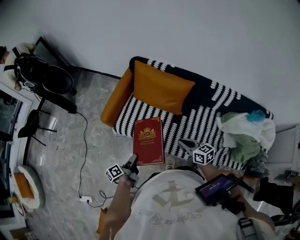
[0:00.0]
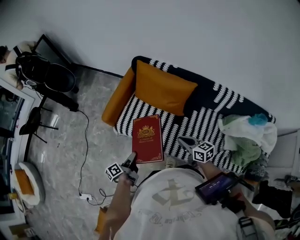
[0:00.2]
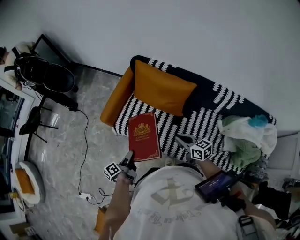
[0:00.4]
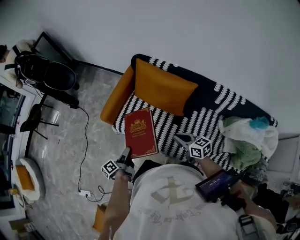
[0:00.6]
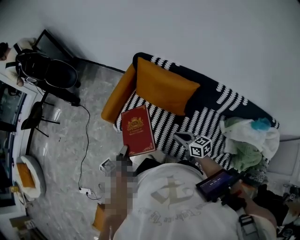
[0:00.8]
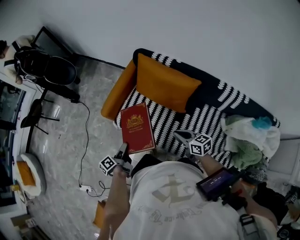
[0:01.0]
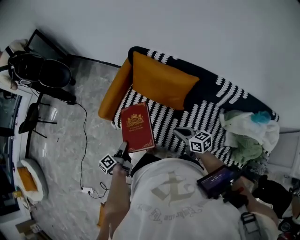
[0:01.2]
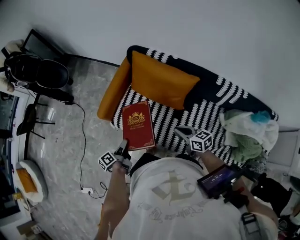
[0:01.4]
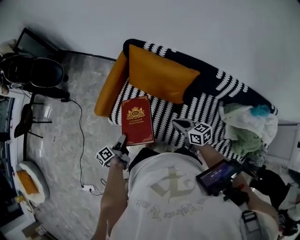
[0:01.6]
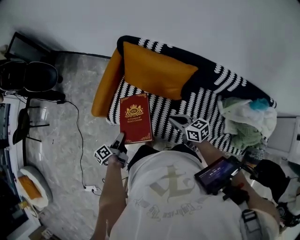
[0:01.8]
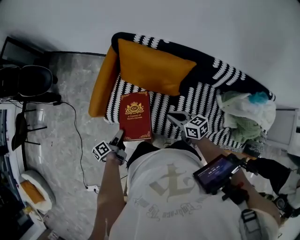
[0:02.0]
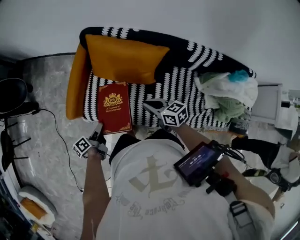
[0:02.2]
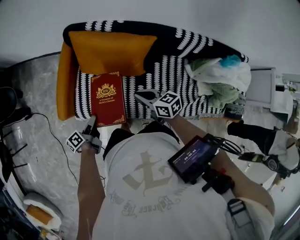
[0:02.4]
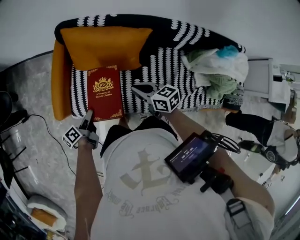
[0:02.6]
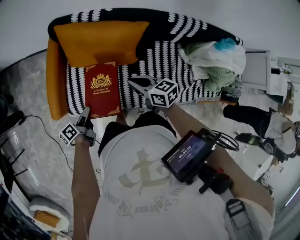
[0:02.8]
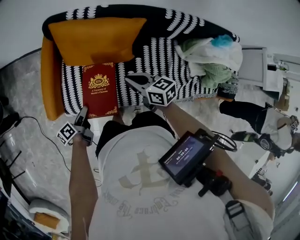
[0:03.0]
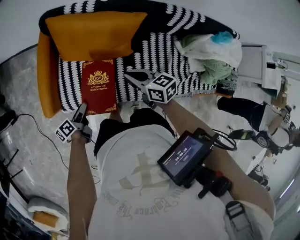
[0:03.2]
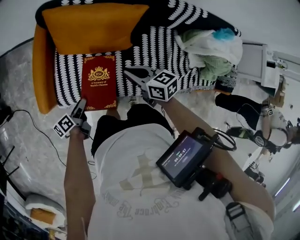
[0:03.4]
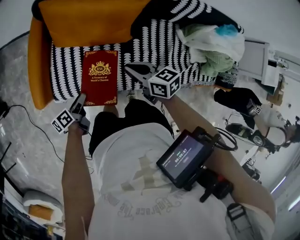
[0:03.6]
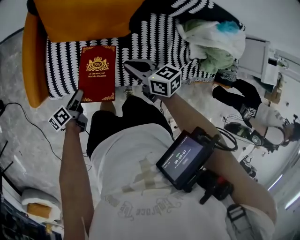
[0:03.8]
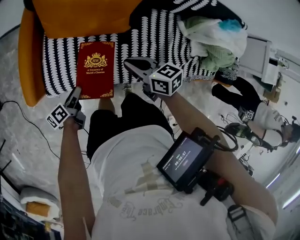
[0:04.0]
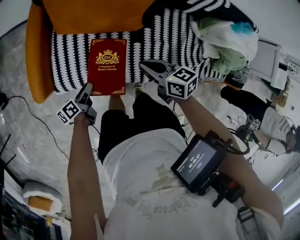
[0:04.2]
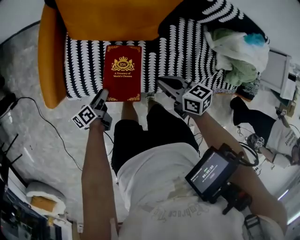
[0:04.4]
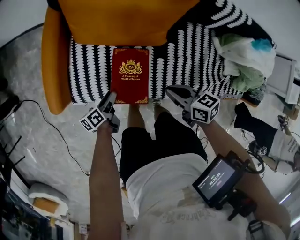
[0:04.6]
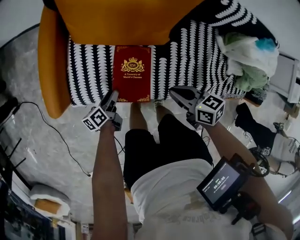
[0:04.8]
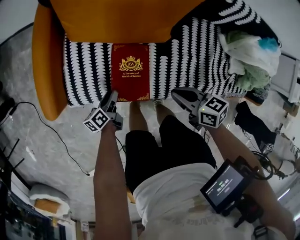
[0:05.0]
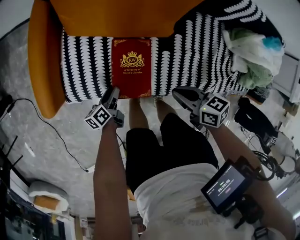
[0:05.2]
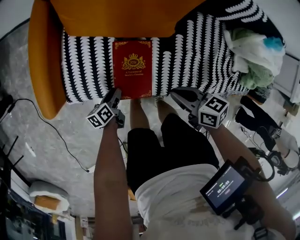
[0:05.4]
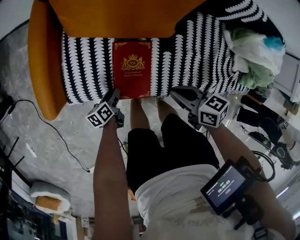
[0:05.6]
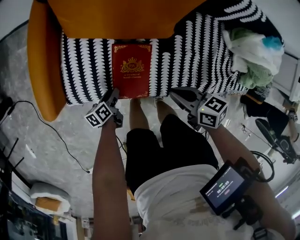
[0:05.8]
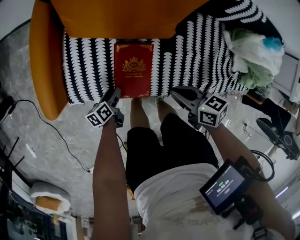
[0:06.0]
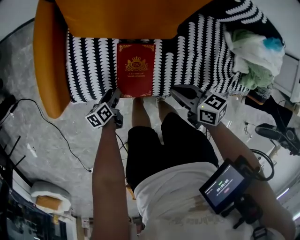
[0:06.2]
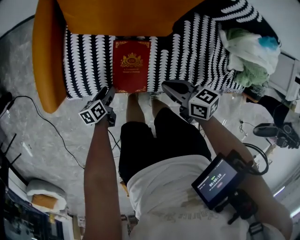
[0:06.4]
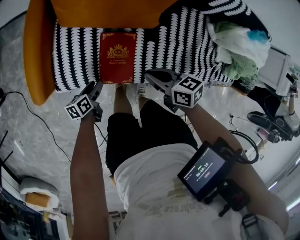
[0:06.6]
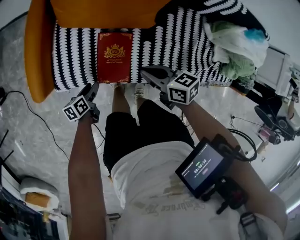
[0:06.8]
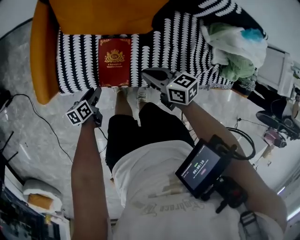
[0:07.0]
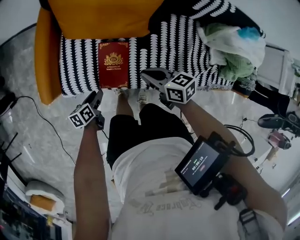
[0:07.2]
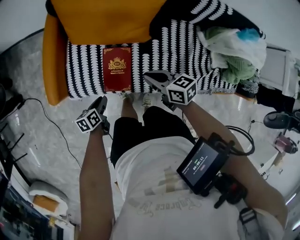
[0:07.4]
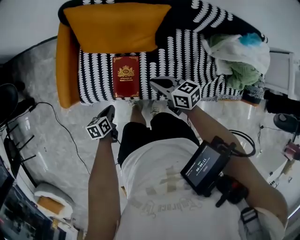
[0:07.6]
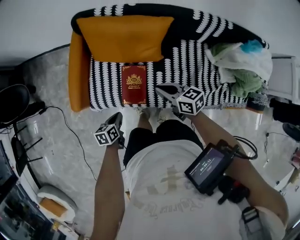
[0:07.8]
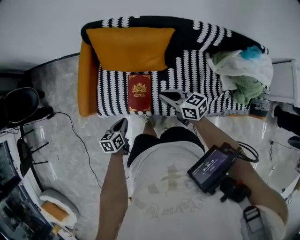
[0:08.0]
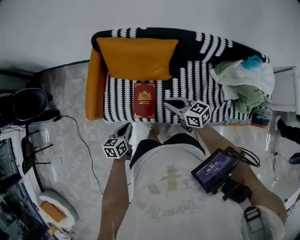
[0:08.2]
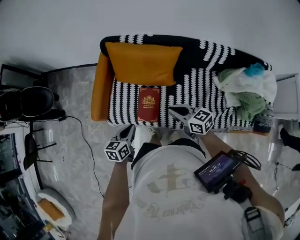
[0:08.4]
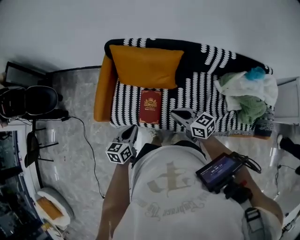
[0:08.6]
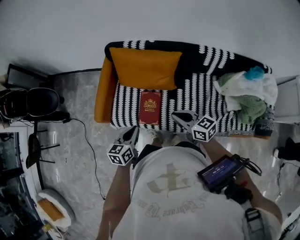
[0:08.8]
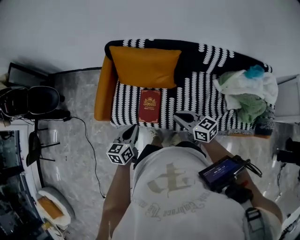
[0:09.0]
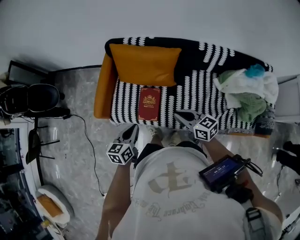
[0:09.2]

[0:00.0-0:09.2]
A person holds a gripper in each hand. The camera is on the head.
0:00.0 to 0:01.6: The right gripper changes place by about 15 cm.
0:01.6 to 0:03.0: The right gripper changes place by approximately 5 cm.
0:03.0 to 0:04.6: The right gripper is displaced downward by roughly 15 cm.
0:06.2 to 0:07.6: The right gripper is displaced upward by some 10 cm.
0:07.6 to 0:09.2: The right gripper heads upward, covering roughly 15 cm.

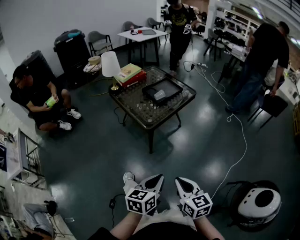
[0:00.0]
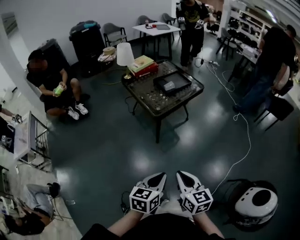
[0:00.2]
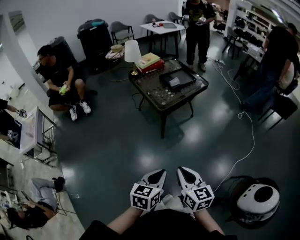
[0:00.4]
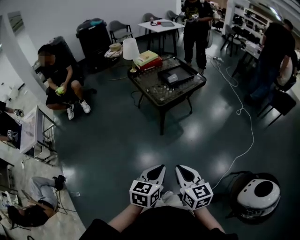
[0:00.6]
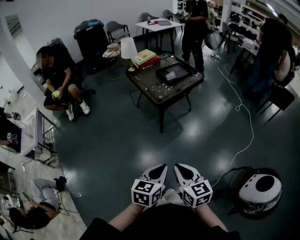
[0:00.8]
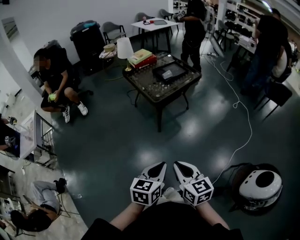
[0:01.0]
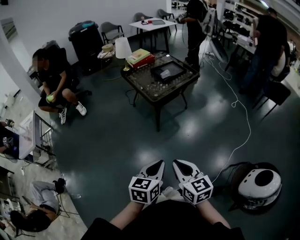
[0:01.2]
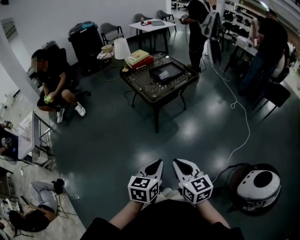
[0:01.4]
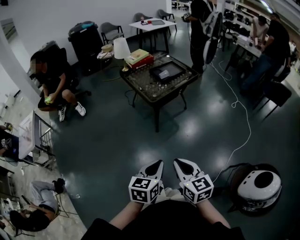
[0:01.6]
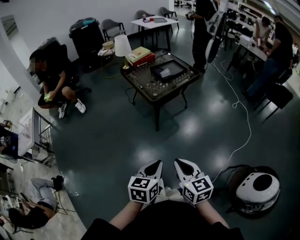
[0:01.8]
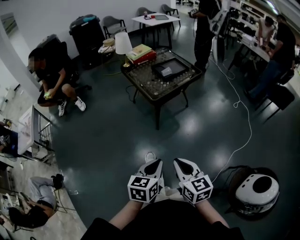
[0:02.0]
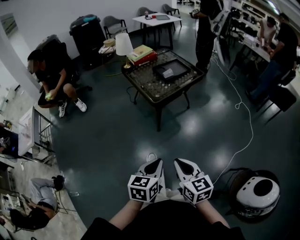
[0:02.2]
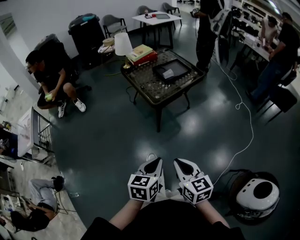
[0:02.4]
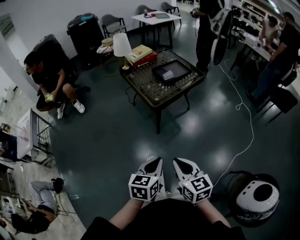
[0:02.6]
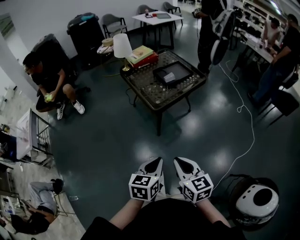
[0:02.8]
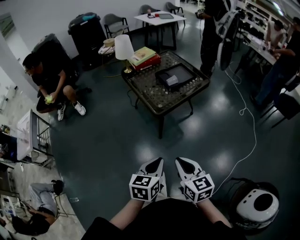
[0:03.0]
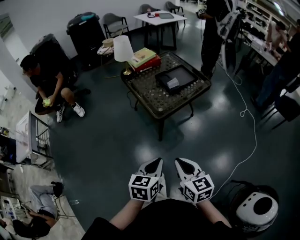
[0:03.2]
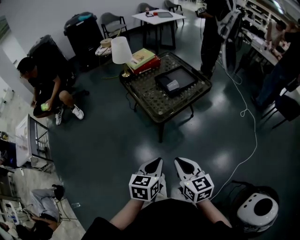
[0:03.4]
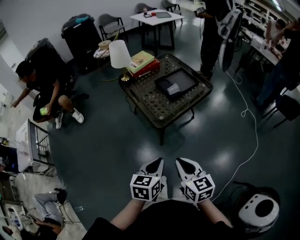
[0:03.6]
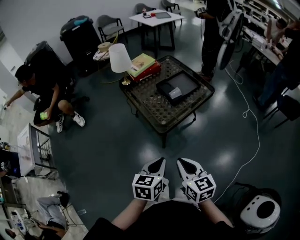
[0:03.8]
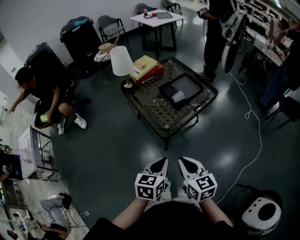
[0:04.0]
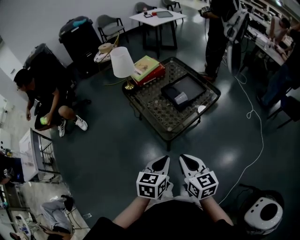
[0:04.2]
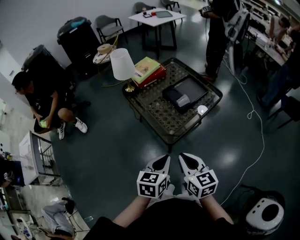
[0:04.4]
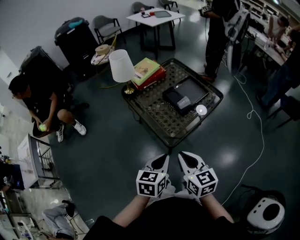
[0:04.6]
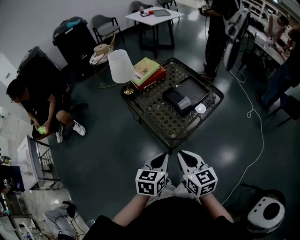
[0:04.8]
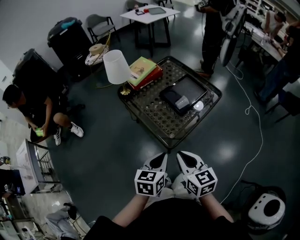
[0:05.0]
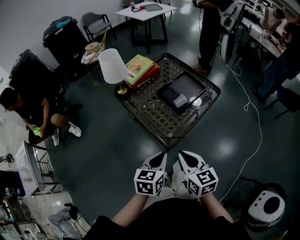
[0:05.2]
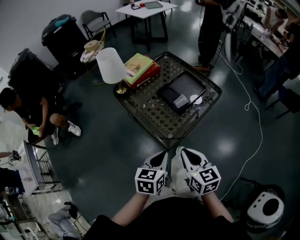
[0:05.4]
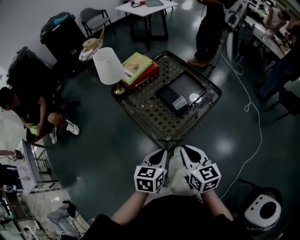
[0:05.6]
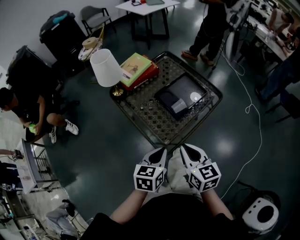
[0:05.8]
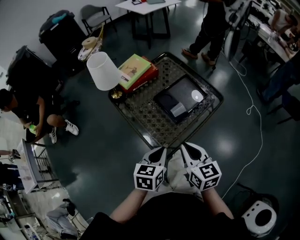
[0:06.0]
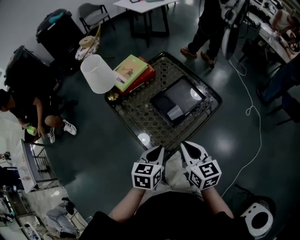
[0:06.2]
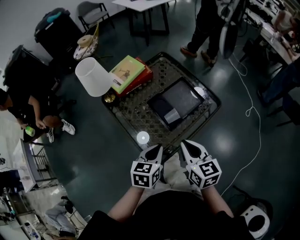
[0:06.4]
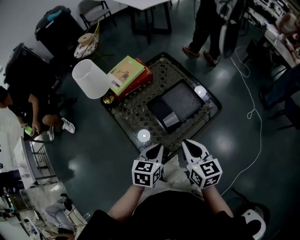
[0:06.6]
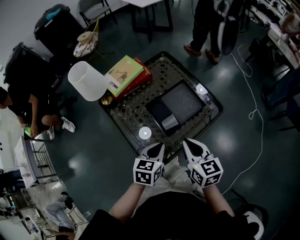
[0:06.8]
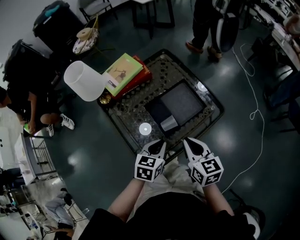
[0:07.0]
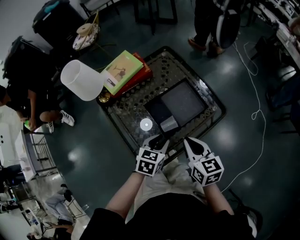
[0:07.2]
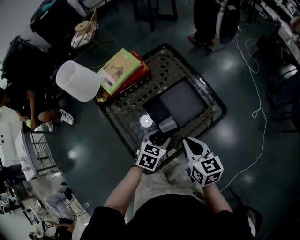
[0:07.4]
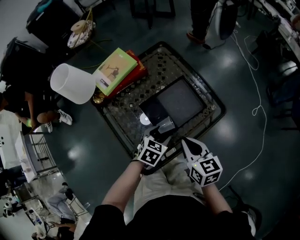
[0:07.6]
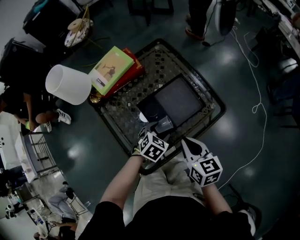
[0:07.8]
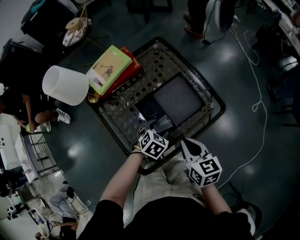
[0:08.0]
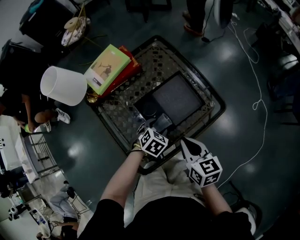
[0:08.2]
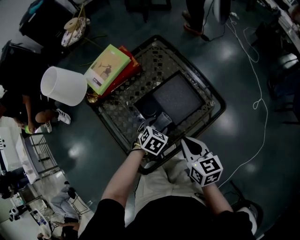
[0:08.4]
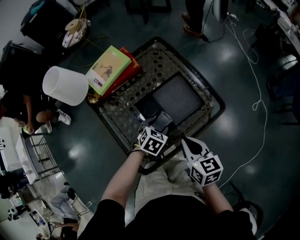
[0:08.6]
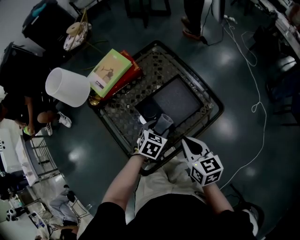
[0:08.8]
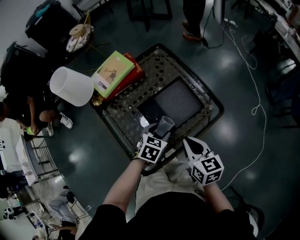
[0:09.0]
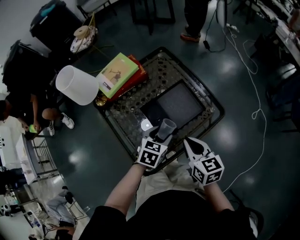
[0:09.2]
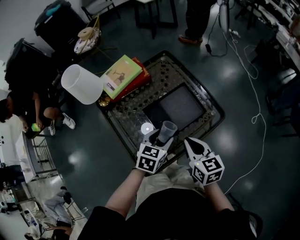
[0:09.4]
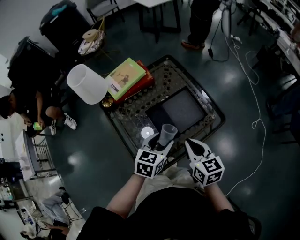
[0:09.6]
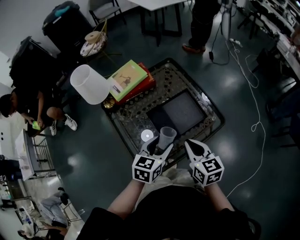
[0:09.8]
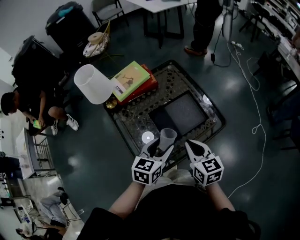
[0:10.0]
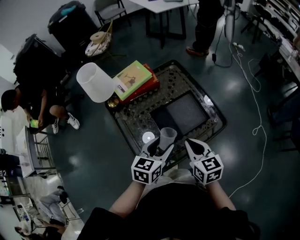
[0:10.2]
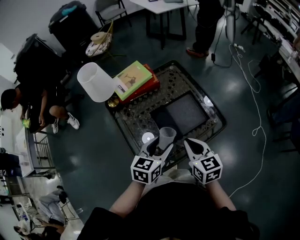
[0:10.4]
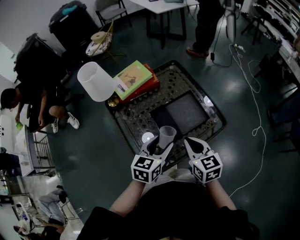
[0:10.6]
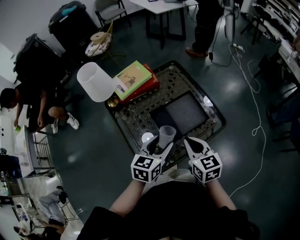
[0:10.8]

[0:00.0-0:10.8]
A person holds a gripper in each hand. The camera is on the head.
0:00.0 to 0:01.6: The two grippers go approximately 15 cm backward.
0:01.6 to 0:03.0: The two grippers go about 20 cm forward.
0:03.0 to 0:04.6: Both grippers travel together forward, approximately 25 cm.
0:04.6 to 0:06.2: The two grippers go some 20 cm forward.
0:06.2 to 0:07.8: The two grippers go approximately 20 cm forward, downward and to the right. The left gripper swivels some 40 degrees, and opens its fingers.
0:07.8 to 0:09.2: The left gripper moves upward, about 5 cm.
0:09.2 to 0:10.8: The left gripper heads upward, covering some 10 cm, and changes its angle by some 20 degrees.

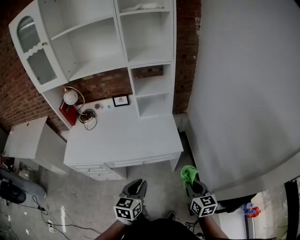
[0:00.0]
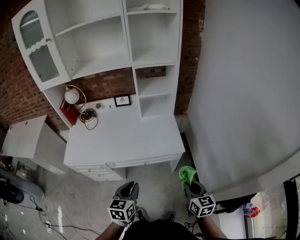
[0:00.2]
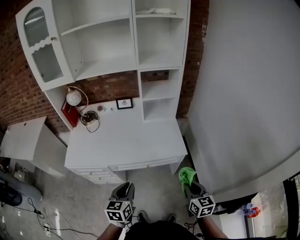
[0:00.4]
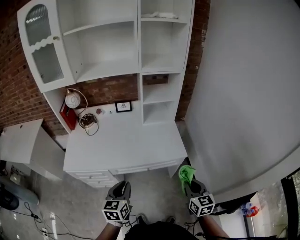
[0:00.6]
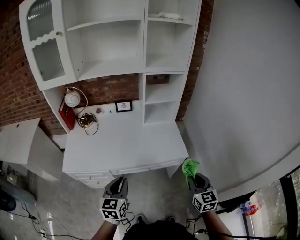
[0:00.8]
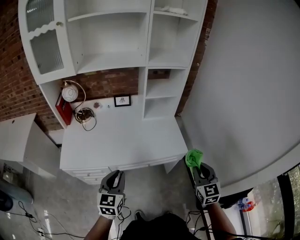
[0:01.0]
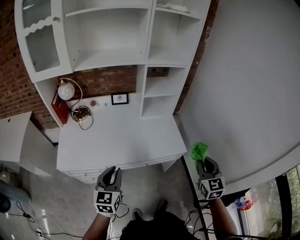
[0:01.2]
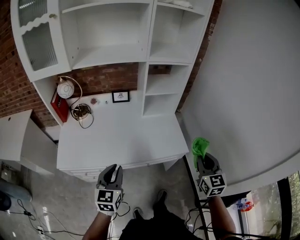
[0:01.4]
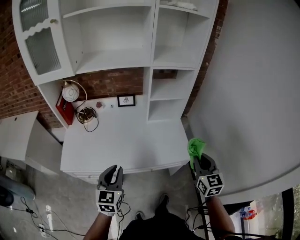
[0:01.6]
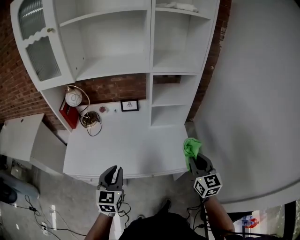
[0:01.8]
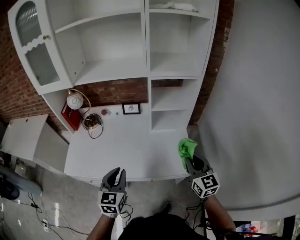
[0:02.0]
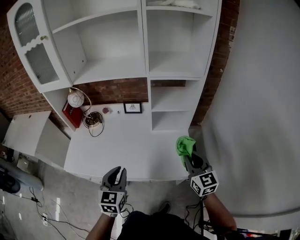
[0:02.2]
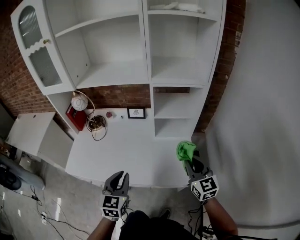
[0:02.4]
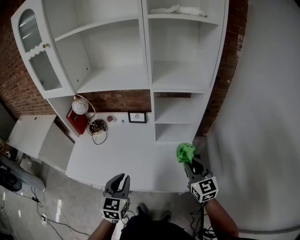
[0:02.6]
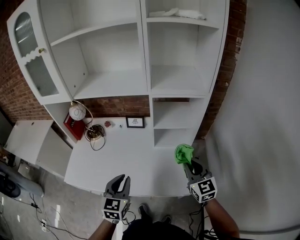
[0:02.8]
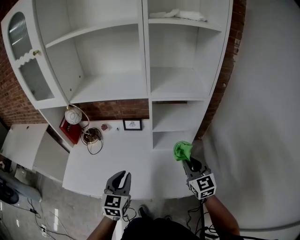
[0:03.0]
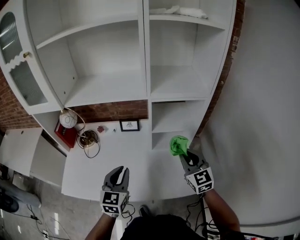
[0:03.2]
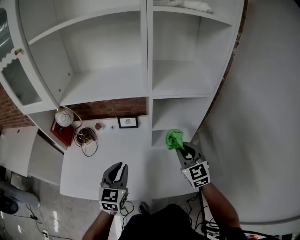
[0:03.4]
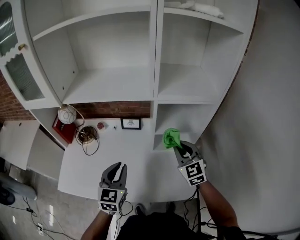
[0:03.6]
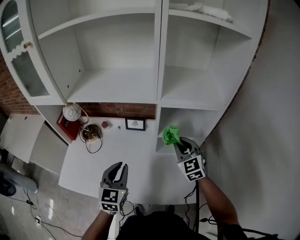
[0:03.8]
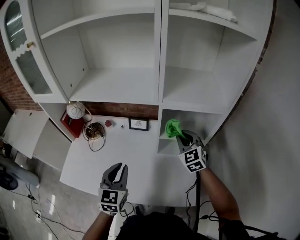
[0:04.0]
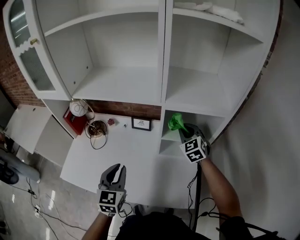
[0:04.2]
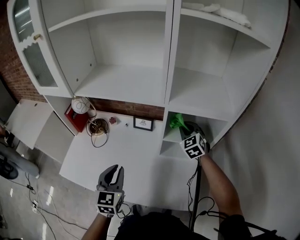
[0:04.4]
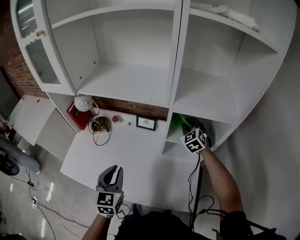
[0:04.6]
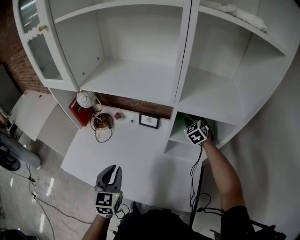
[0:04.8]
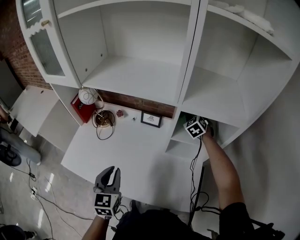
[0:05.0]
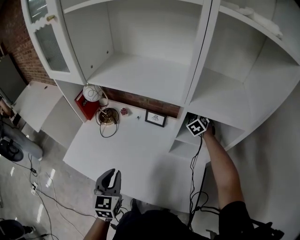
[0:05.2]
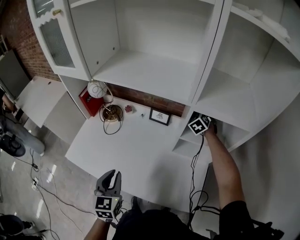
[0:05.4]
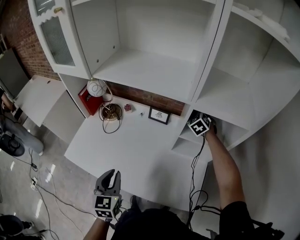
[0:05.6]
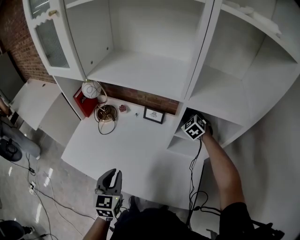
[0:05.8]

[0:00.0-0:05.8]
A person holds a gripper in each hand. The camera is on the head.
0:00.0 to 0:01.4: The left gripper travels to the left by roughly 25 cm. Meanwhile the right gripper shifts approximately 20 cm forward, upward and to the left, and swivels roughly 20 degrees.
0:01.4 to 0:02.8: The left gripper shifts about 20 cm forward and to the right. Meanwhile the right gripper is displaced forward by some 25 cm, and turns by roughly 30 degrees.
0:02.8 to 0:04.4: The left gripper goes about 10 cm forward. Meanwhile the right gripper travels forward by approximately 30 cm, and turns by roughly 30 degrees.
0:04.4 to 0:05.8: The right gripper goes roughly 10 cm forward and downward, while the left gripper ends up approximately 5 cm from where it was.
